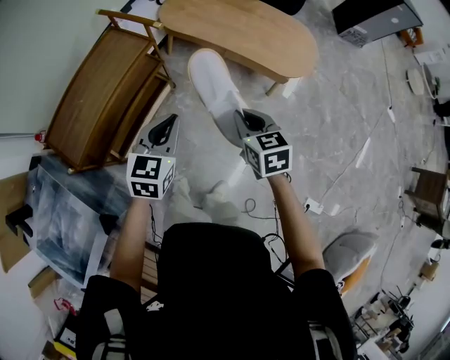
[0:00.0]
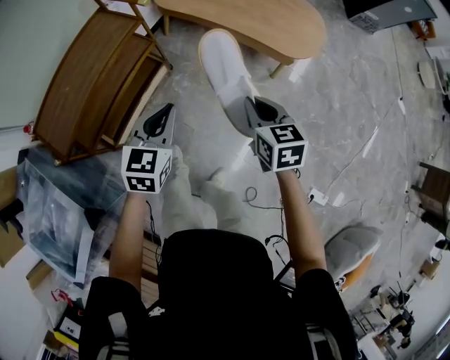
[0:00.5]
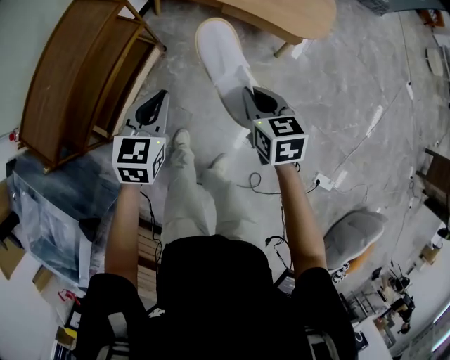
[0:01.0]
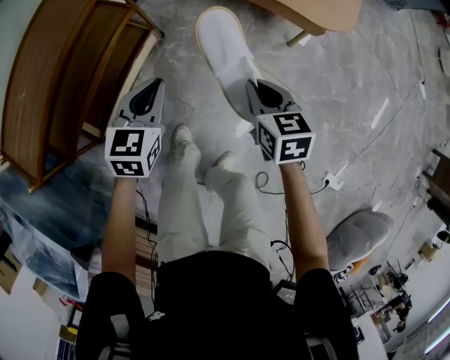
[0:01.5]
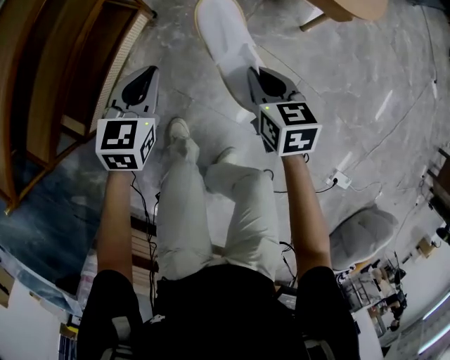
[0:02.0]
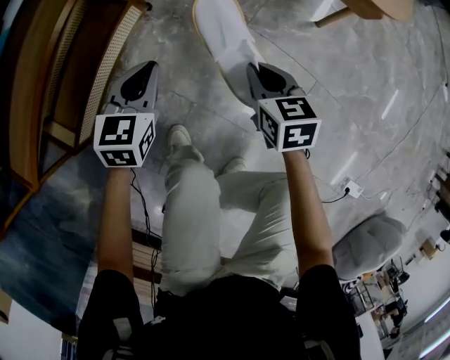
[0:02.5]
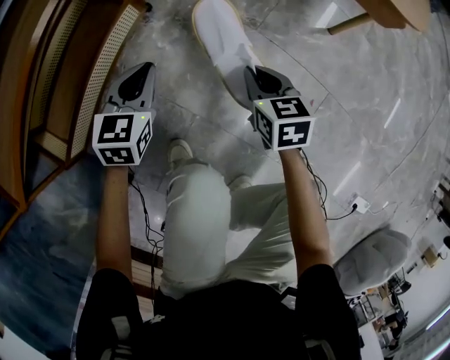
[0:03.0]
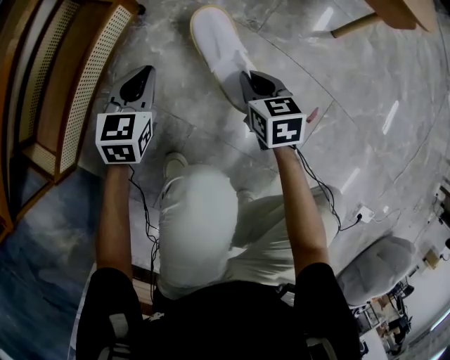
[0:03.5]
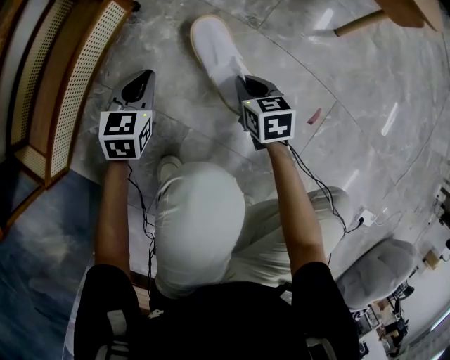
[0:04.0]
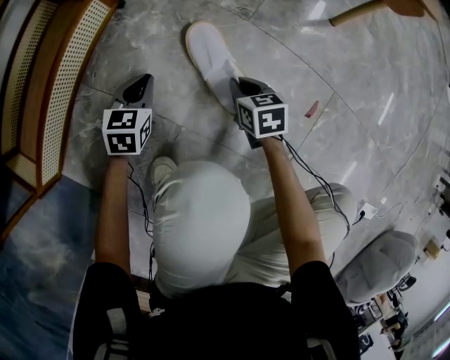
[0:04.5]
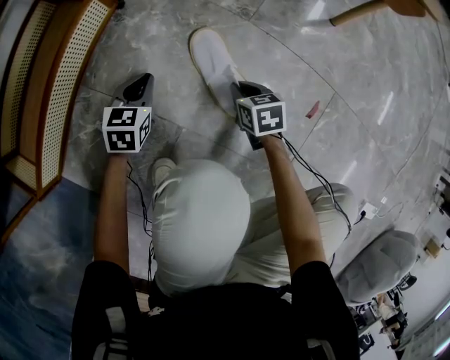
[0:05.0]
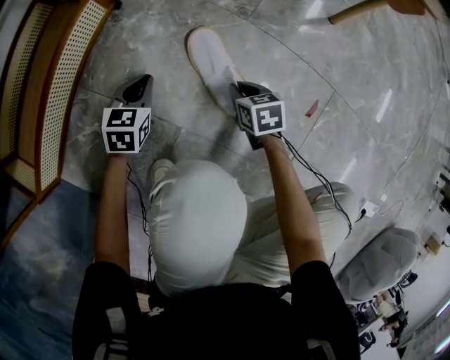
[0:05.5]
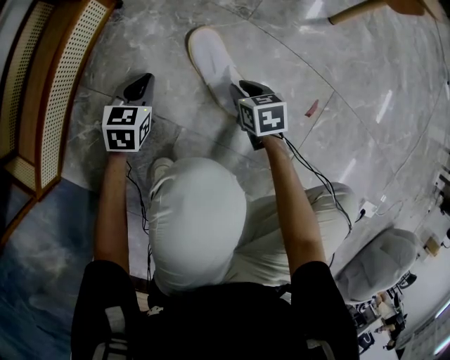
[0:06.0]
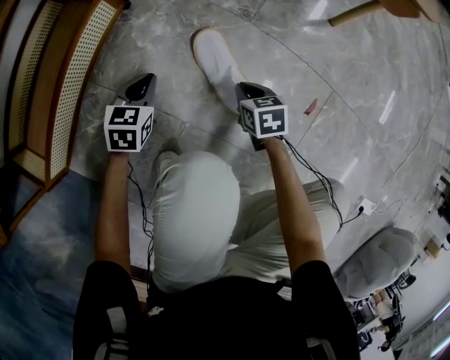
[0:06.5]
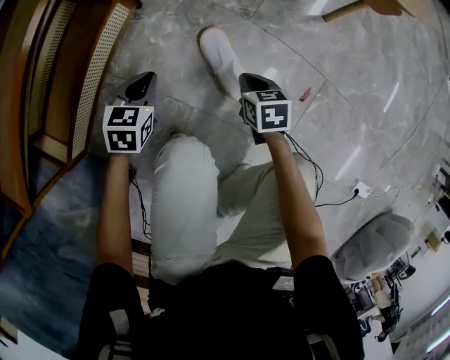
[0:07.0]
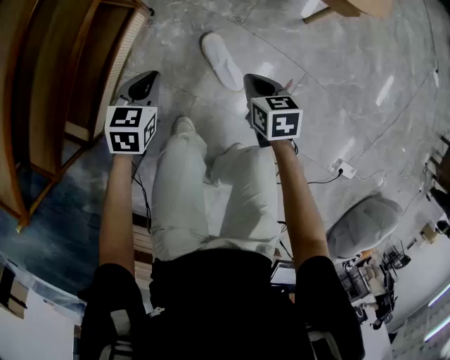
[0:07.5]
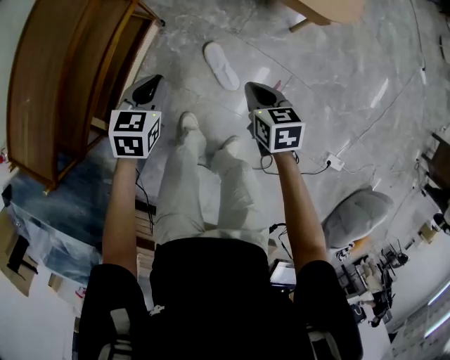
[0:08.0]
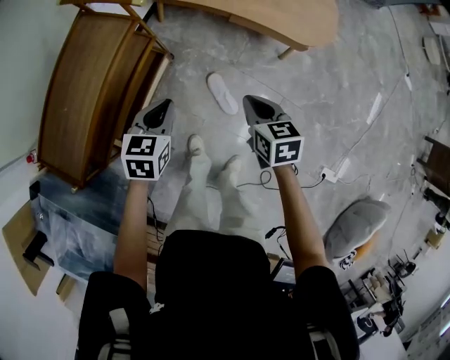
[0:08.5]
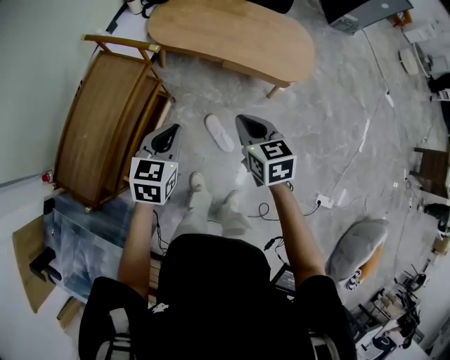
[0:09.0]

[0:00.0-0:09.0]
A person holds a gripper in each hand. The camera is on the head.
0:00.0 to 0:02.0: The two grippers go approximately 40 cm downward.
0:02.0 to 0:04.5: The two grippers go approximately 40 cm downward.
0:04.5 to 0:07.0: The two grippers go roughly 15 cm upward.
0:07.0 to 0:09.0: Both grippers travel together upward, about 70 cm. The right gripper turns by some 20 degrees.

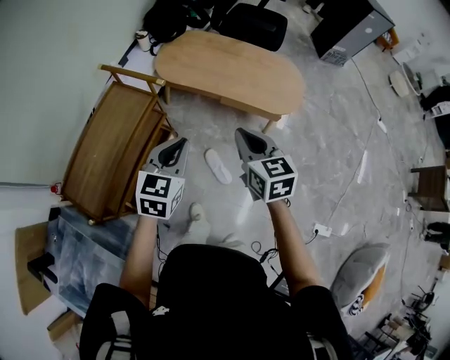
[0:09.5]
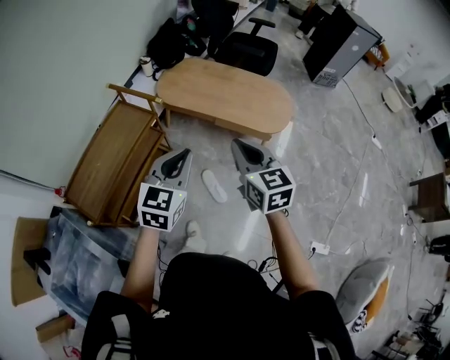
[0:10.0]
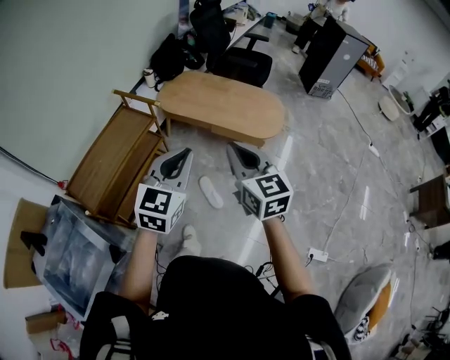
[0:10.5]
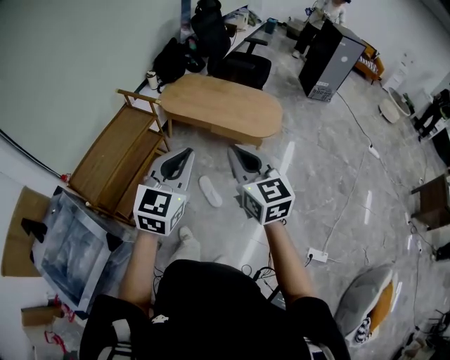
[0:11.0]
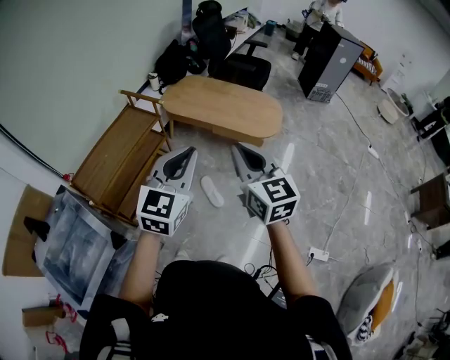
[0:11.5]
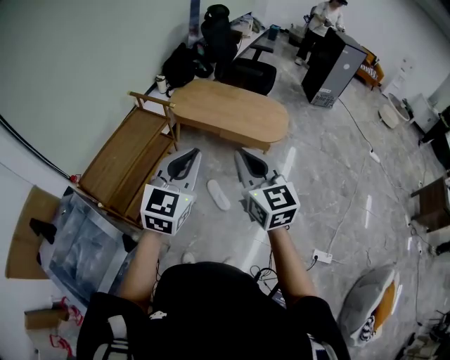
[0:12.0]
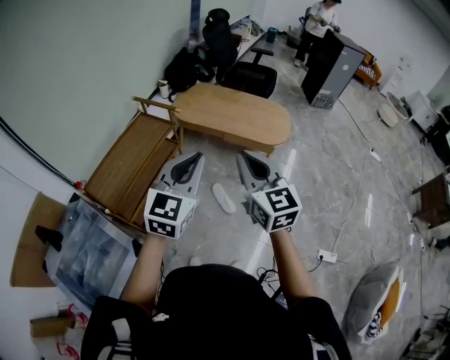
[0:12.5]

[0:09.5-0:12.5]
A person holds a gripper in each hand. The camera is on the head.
0:09.5 to 0:11.0: The left gripper moves backward, upward and to the right, roughly 30 cm. The right gripper heads backward and upward, covering approximately 30 cm.
0:11.0 to 0:12.5: The grippers both shift to the left by approximately 10 cm.

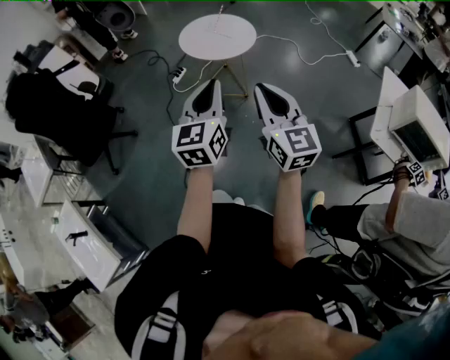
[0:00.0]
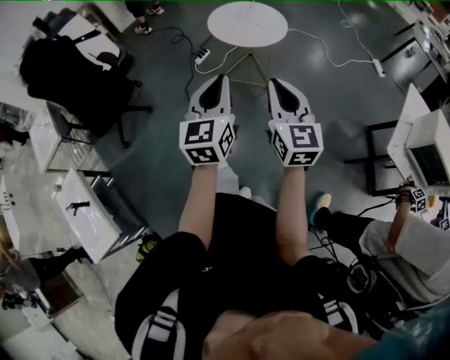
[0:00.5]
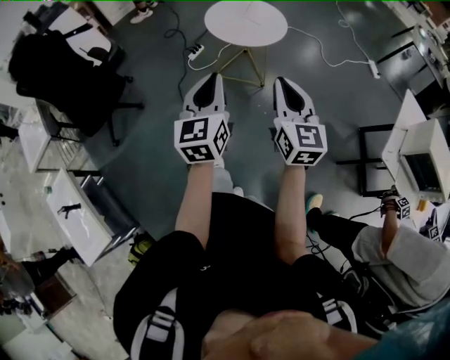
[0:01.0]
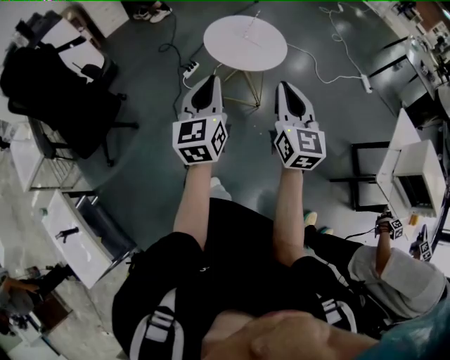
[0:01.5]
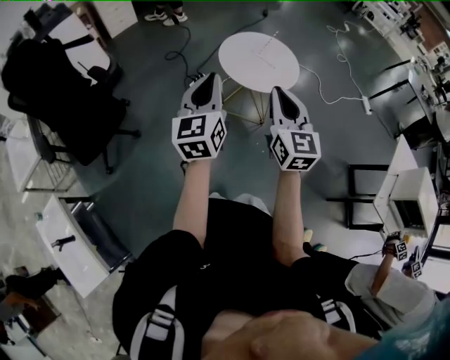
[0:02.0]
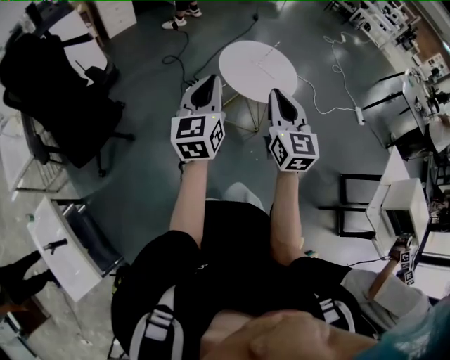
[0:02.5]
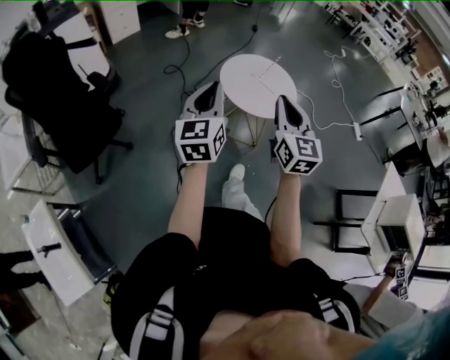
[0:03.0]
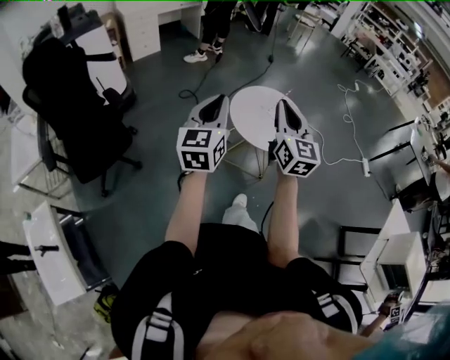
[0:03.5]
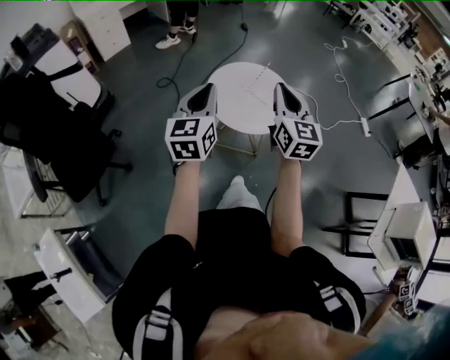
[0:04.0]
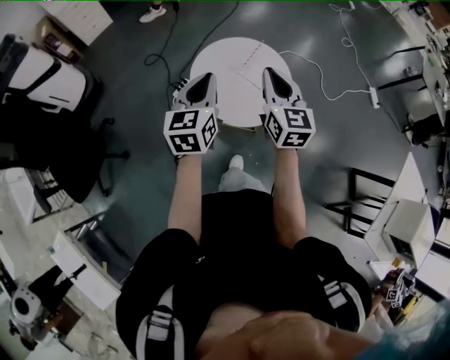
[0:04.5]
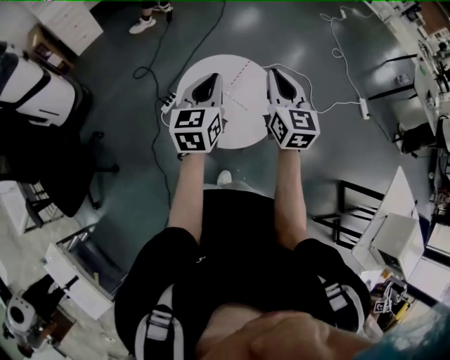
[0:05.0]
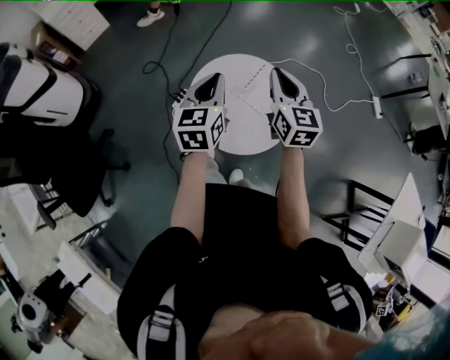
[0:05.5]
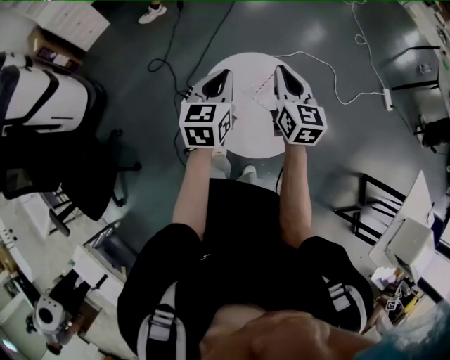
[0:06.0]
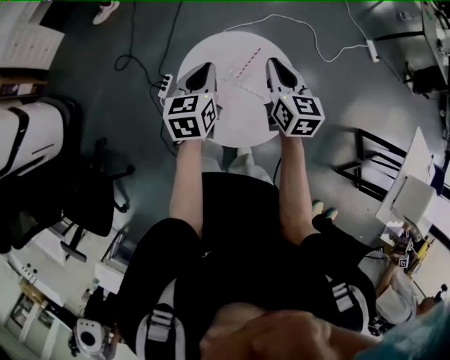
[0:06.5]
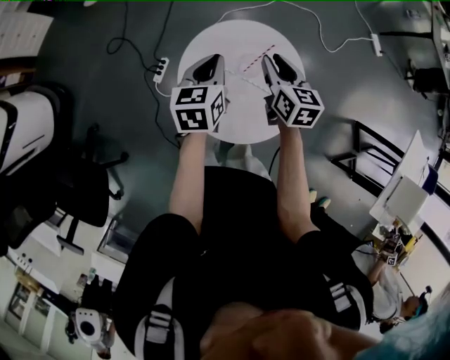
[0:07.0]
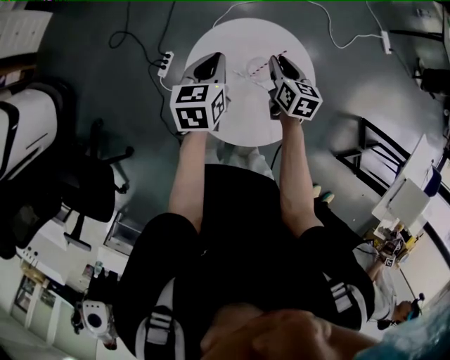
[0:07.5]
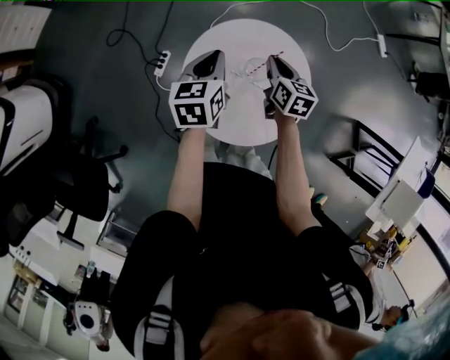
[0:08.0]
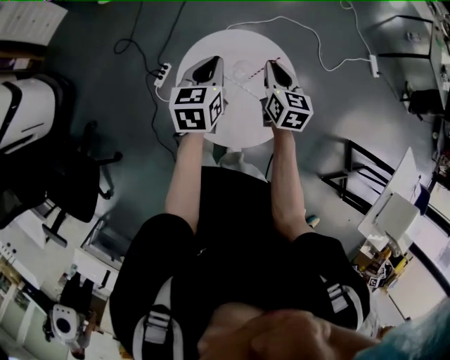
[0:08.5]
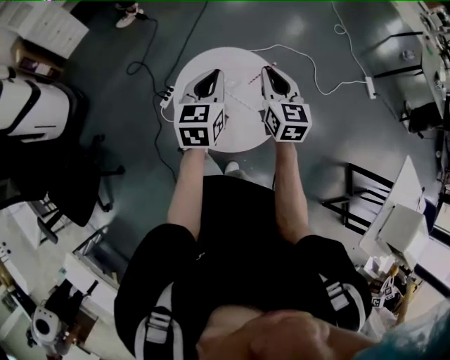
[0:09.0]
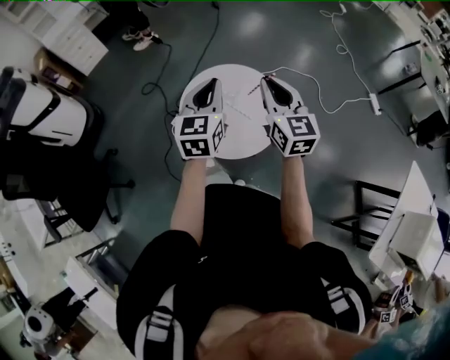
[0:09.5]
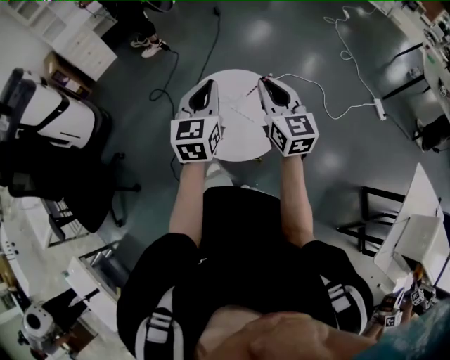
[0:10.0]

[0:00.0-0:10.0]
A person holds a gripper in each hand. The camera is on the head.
0:00.0 to 0:02.0: The two grippers go roughly 35 cm forward and to the left.
0:02.0 to 0:04.0: Both grippers move forward, roughly 25 cm.
0:04.0 to 0:06.0: Both grippers move forward, some 40 cm.
0:06.0 to 0:08.0: Both grippers move downward and forward, some 25 cm. The right gripper turns by about 30 degrees, while the left gripper rotates about 20 degrees.
0:08.0 to 0:10.0: The left gripper moves backward, upward and to the right, roughly 40 cm, and rotates roughly 40 degrees; the right gripper moves upward and backward, roughly 40 cm, and tilts its fingers approximately 40 degrees upward.

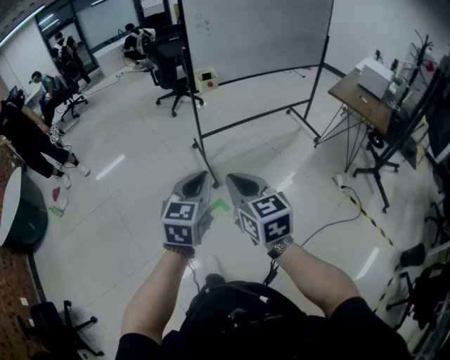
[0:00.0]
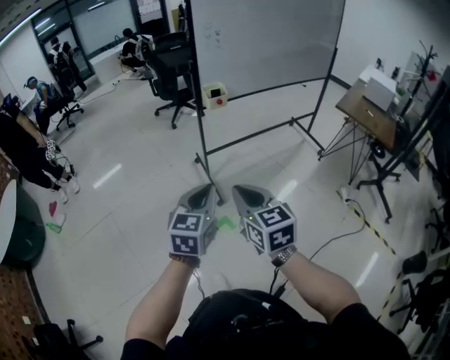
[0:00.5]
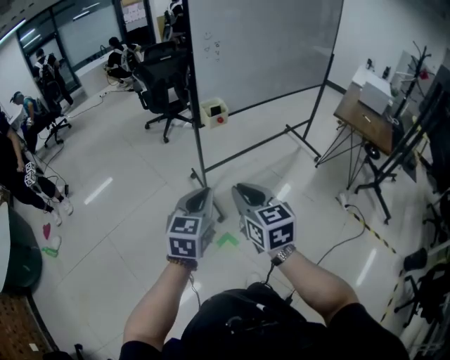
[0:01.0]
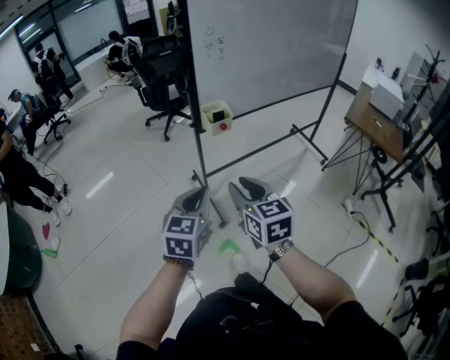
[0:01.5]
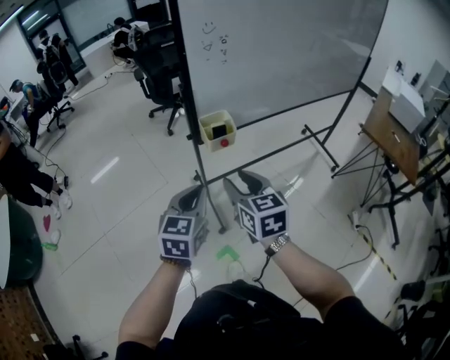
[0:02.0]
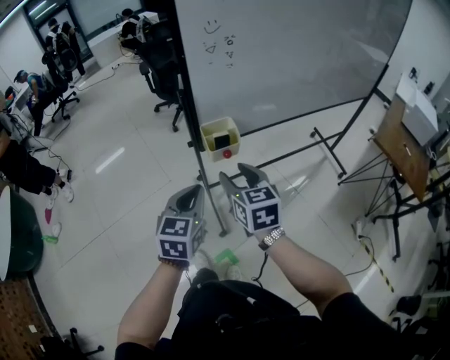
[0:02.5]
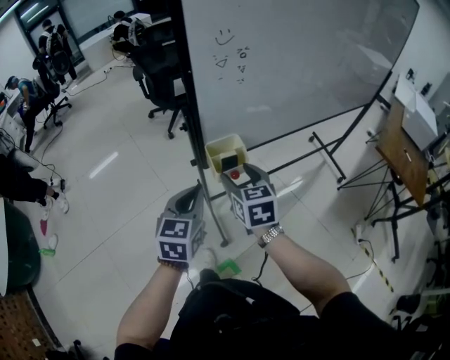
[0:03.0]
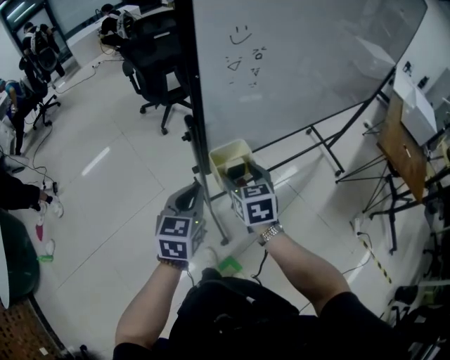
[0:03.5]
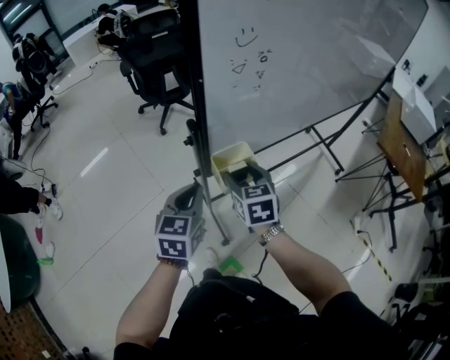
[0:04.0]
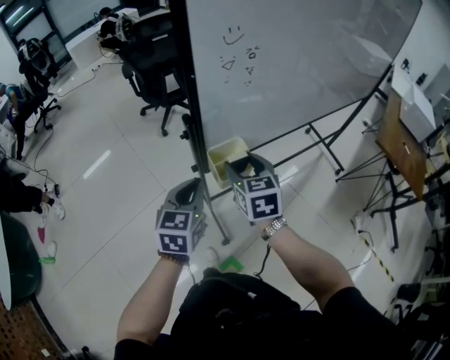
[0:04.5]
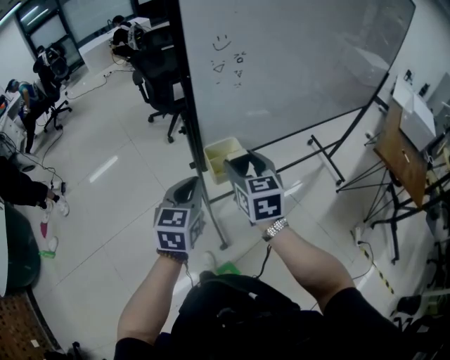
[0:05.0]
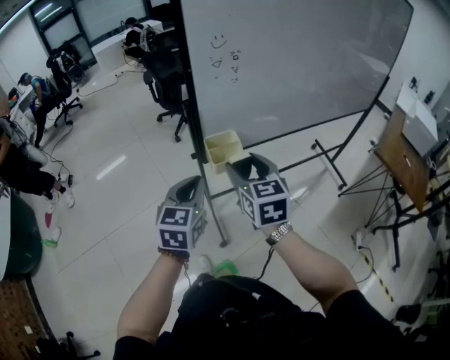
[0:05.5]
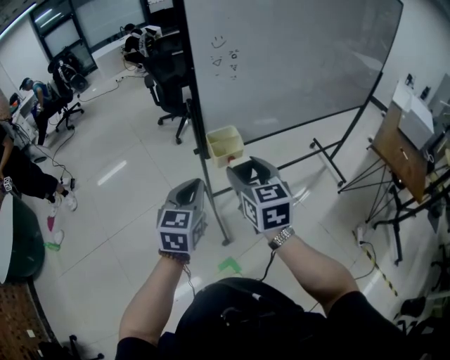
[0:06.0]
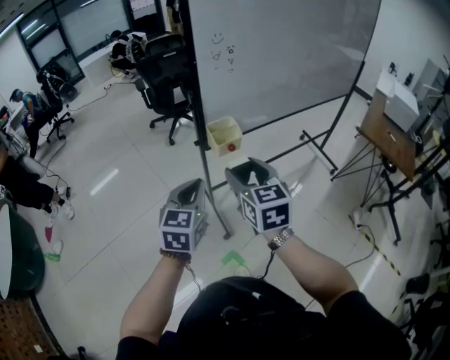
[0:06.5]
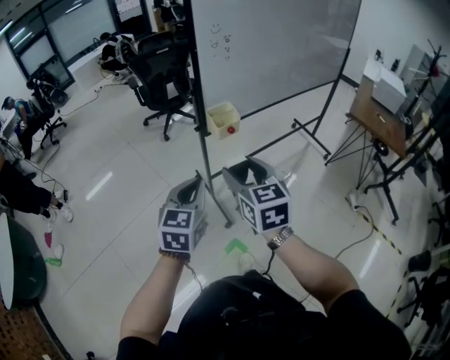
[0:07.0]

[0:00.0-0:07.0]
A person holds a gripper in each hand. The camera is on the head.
0:00.0 to 0:02.0: The two grippers travel together, forward, roughly 50 cm. The right gripper opens.
0:02.0 to 0:03.5: Both grippers move forward, about 20 cm. The right gripper opens.
0:03.5 to 0:05.0: The right gripper heads upward, covering approximately 10 cm. Meanwhile the left gripper changes place by some 5 cm.
0:05.0 to 0:07.0: The two grippers go roughly 25 cm backward.
